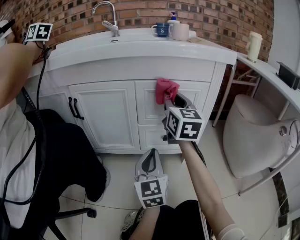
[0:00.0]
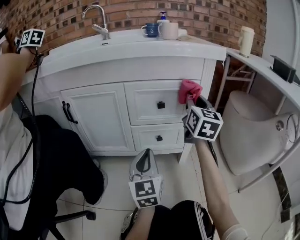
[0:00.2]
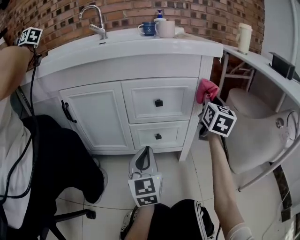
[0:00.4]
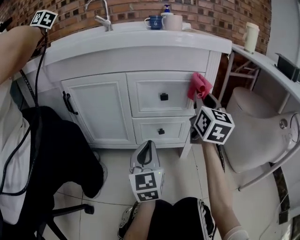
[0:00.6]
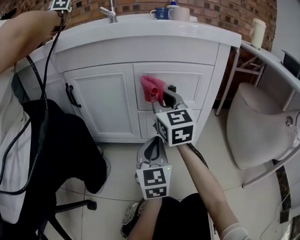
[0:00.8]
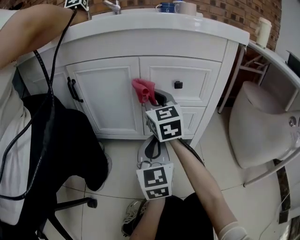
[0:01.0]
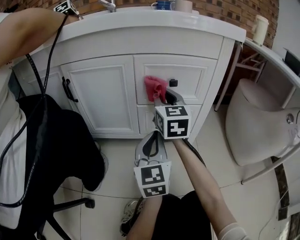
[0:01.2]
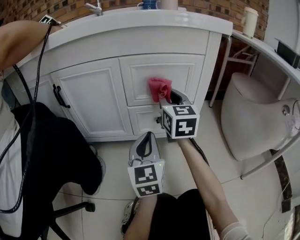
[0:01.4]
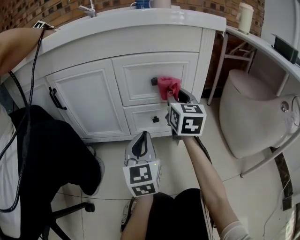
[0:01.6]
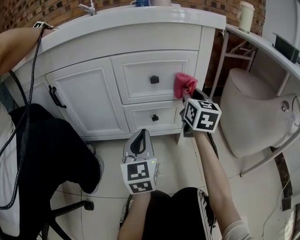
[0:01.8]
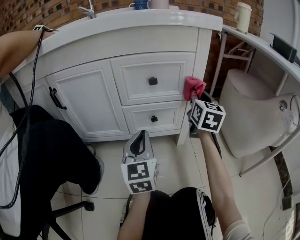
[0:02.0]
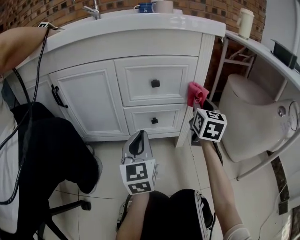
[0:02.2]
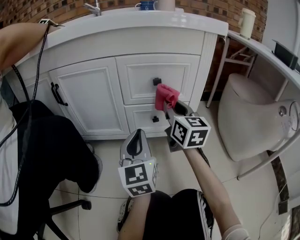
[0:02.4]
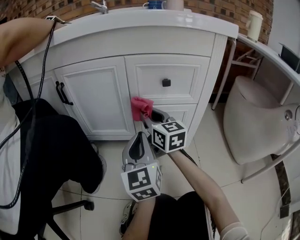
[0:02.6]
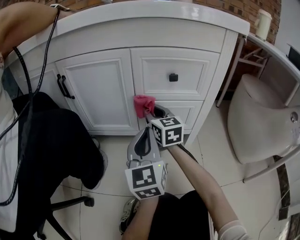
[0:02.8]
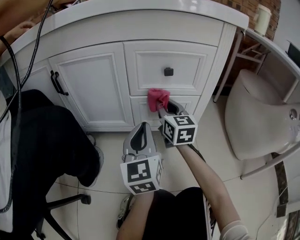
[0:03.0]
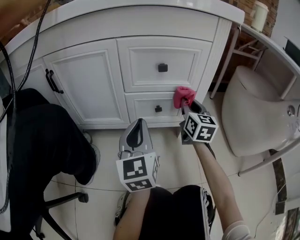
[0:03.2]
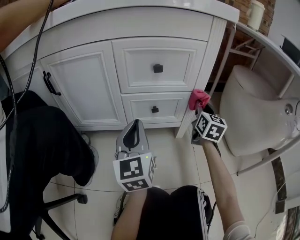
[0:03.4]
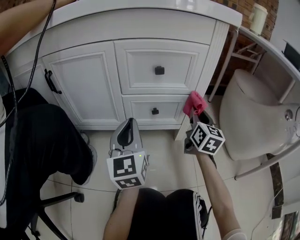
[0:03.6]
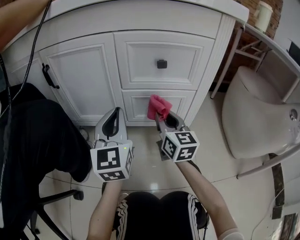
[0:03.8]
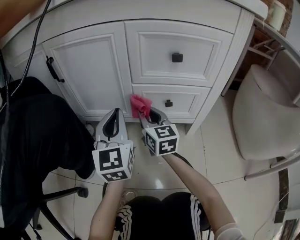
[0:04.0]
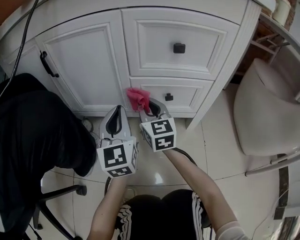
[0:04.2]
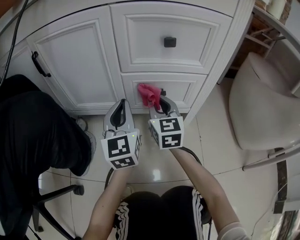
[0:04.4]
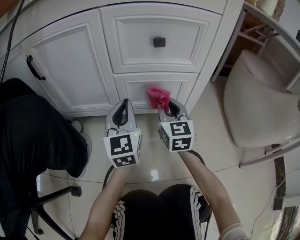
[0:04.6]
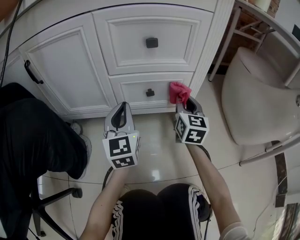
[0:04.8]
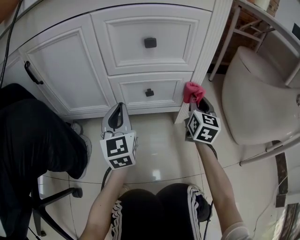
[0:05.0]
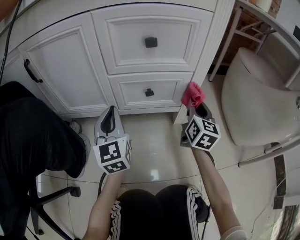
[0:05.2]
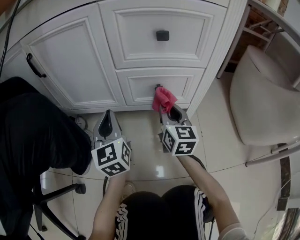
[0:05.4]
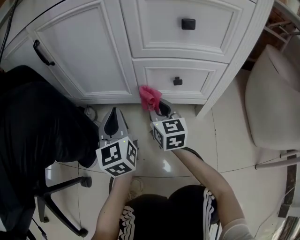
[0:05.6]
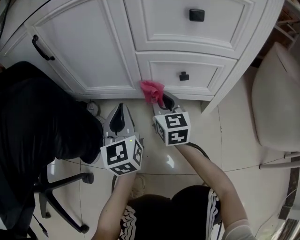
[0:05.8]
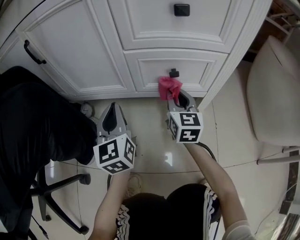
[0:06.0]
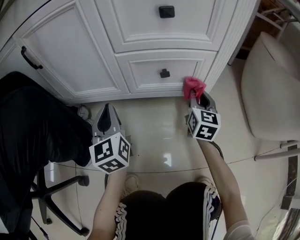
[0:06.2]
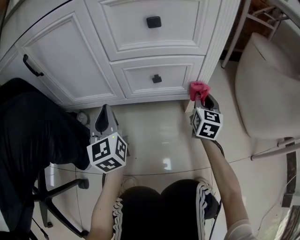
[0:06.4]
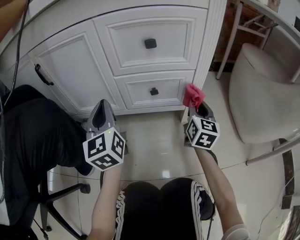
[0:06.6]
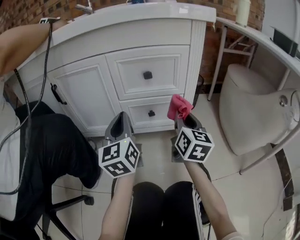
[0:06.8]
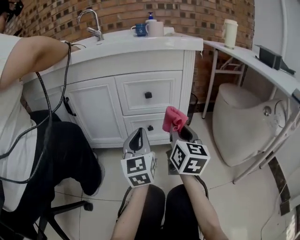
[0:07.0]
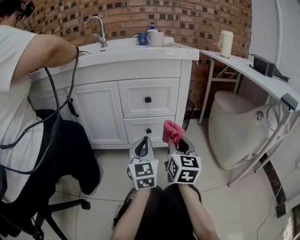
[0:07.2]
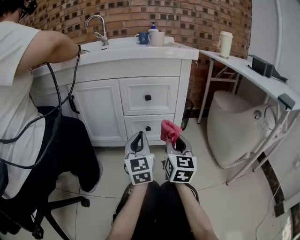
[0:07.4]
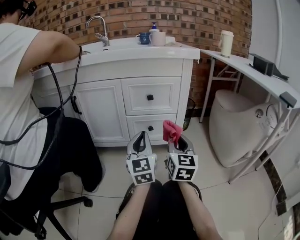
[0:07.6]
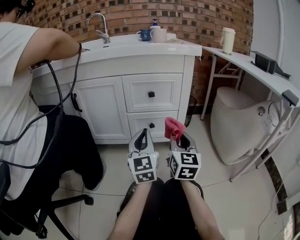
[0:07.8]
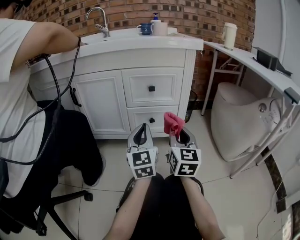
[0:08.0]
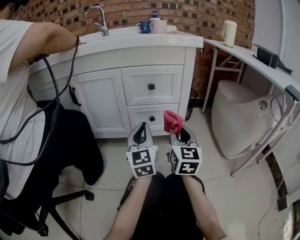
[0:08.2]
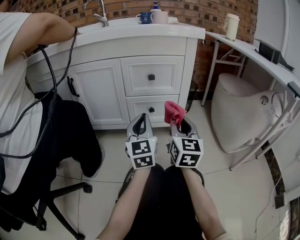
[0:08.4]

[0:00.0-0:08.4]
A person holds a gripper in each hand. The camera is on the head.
0:00.0 to 0:01.4: The right gripper moves left and right over about 30 cm, changing direction 2 times.
0:01.4 to 0:02.8: The right gripper is displaced downward and to the left by about 15 cm.
0:02.8 to 0:04.2: The right gripper travels downward by approximately 10 cm, and goes to the right and returns, about 30 cm each way, while the left gripper travels forward, to the left and downward by some 10 cm.
0:04.2 to 0:05.6: The two grippers go some 10 cm downward. The left gripper travels to the right and back again, about 5 cm each way. The right gripper goes to the right and returns, about 30 cm each way.
0:05.6 to 0:07.0: The two grippers go about 30 cm upward, to the right and backward. The right gripper turns by about 30 degrees.
0:07.0 to 0:08.4: The grippers make only small movements.

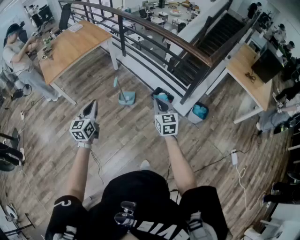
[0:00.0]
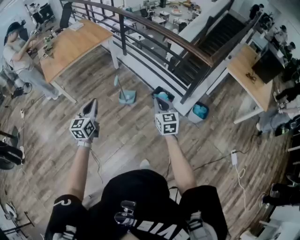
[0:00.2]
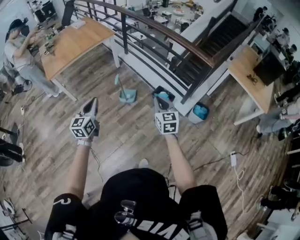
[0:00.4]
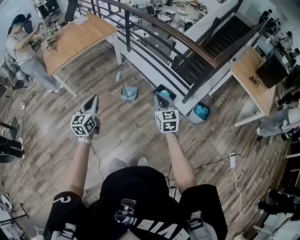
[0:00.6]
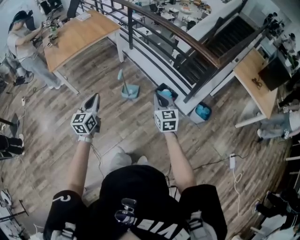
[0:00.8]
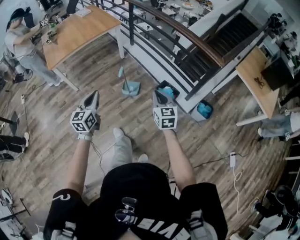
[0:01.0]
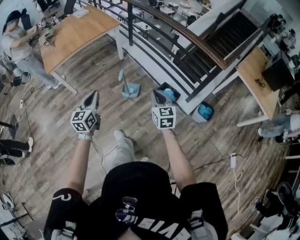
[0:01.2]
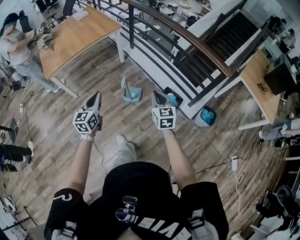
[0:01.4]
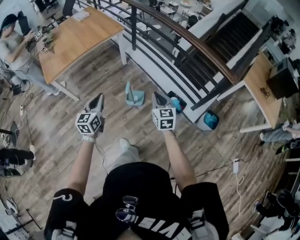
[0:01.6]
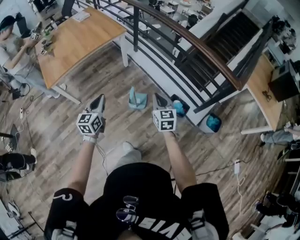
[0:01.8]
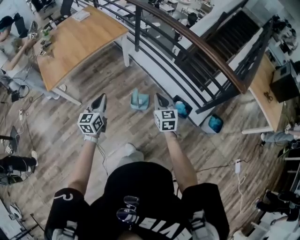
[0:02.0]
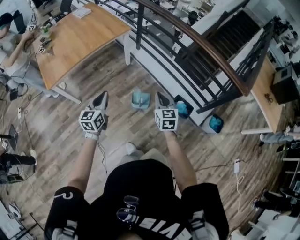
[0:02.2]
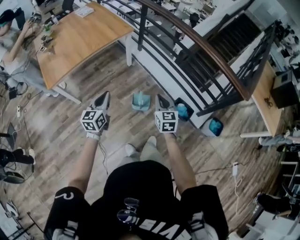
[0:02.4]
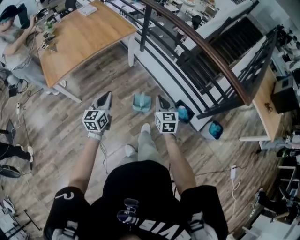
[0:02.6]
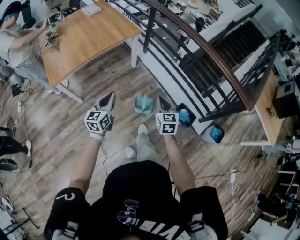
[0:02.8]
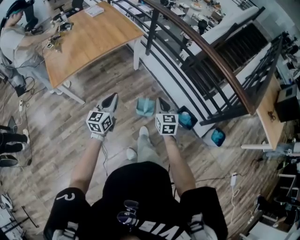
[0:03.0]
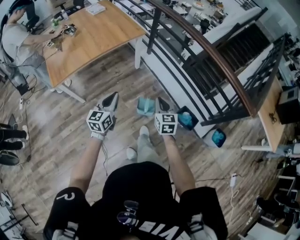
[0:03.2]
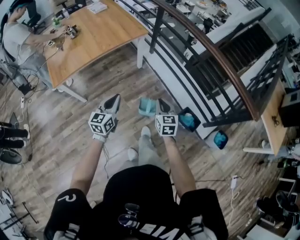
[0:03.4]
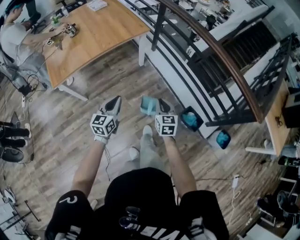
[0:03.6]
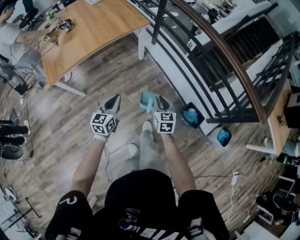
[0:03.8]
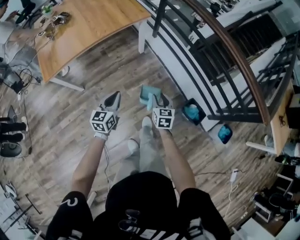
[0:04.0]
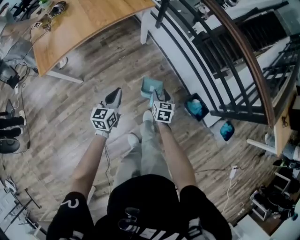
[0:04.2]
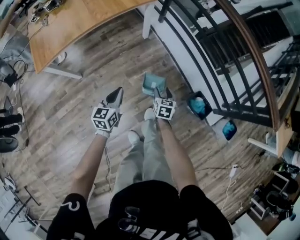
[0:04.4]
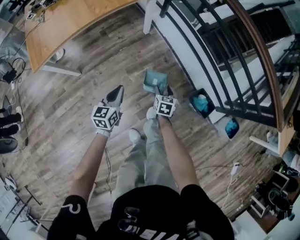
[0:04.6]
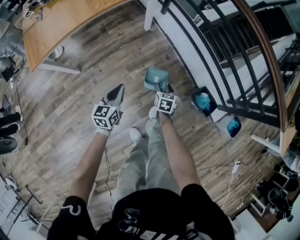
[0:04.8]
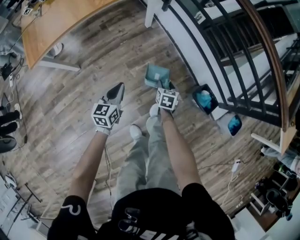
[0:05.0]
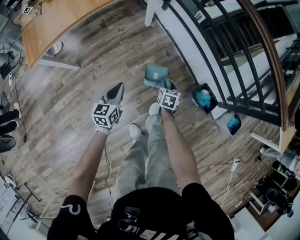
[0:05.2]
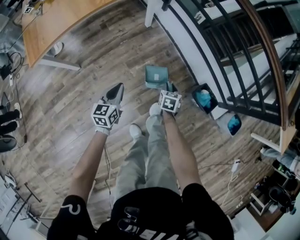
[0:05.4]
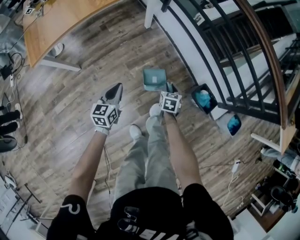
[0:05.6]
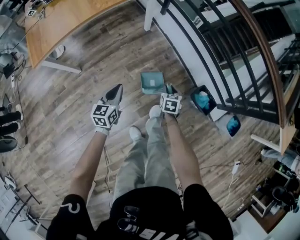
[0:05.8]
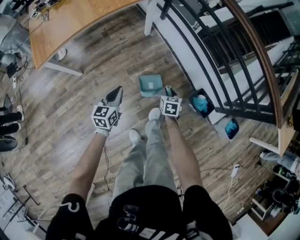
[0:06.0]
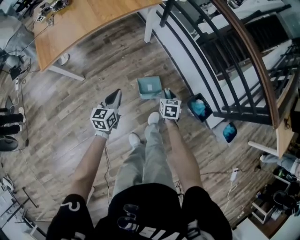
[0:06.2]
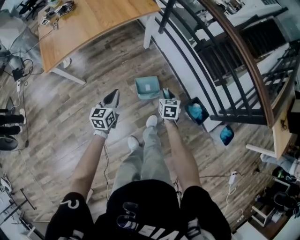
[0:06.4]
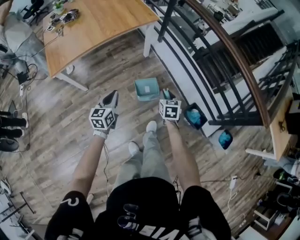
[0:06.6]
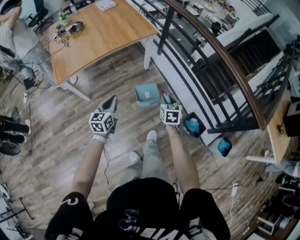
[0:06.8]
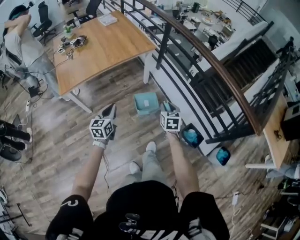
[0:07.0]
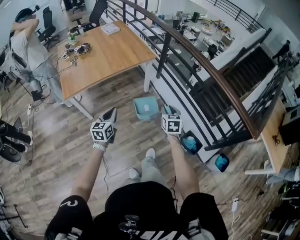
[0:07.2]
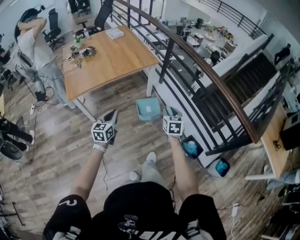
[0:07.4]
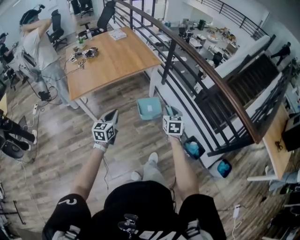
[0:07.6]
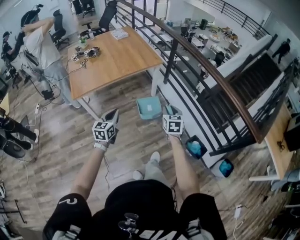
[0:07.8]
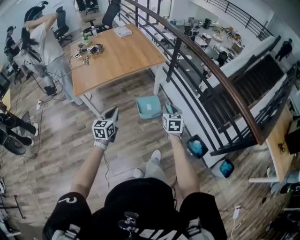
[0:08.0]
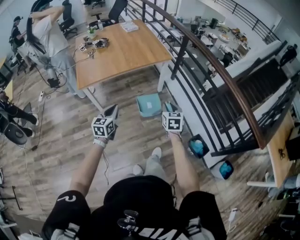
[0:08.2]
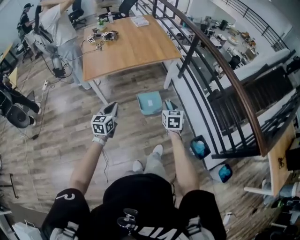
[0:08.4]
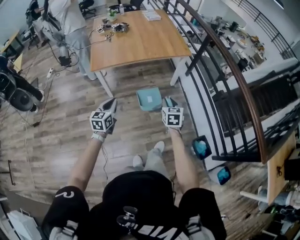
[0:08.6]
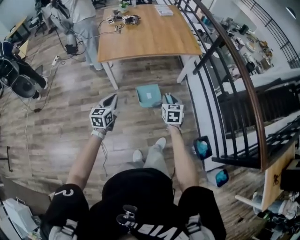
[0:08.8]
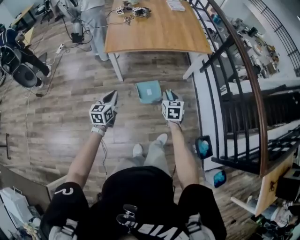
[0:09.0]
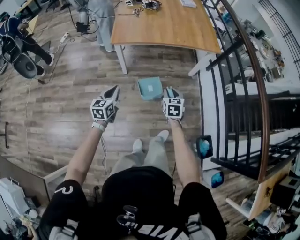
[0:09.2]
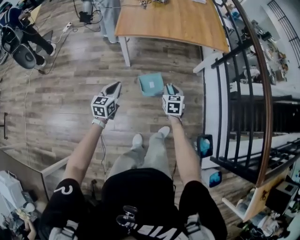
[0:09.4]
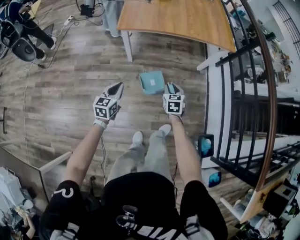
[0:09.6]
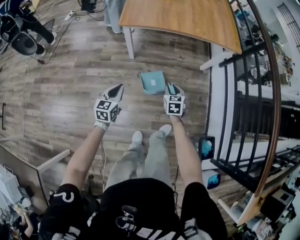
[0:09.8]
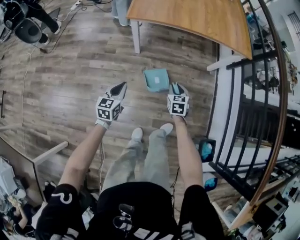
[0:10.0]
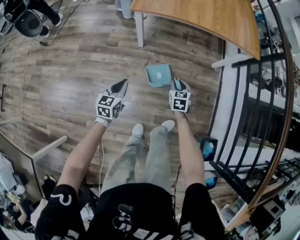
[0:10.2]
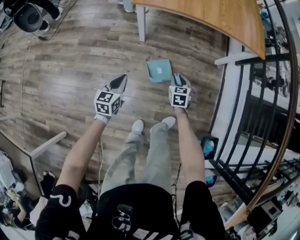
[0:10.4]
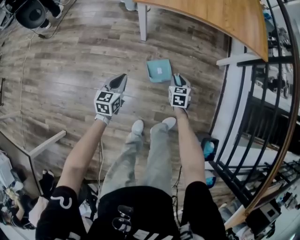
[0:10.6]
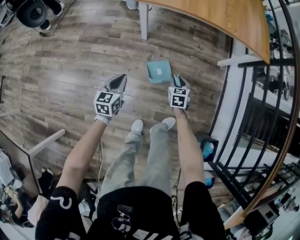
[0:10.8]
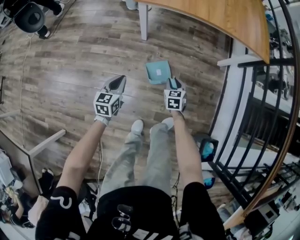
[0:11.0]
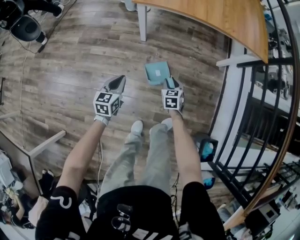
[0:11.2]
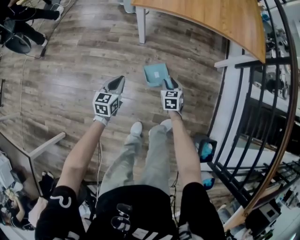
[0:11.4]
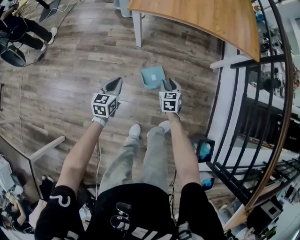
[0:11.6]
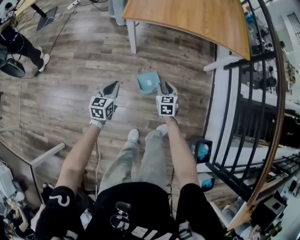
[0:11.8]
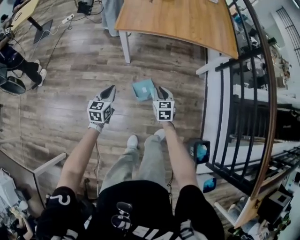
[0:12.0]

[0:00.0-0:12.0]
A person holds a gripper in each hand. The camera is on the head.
0:00.0 to 0:01.6: Both grippers move forward and to the left, about 25 cm.
0:01.6 to 0:03.0: Both grippers travel together forward and to the left, some 20 cm.
0:03.0 to 0:04.4: The two grippers go approximately 25 cm downward. The right gripper changes its angle by some 20 degrees, and opens its fingers.
0:04.4 to 0:06.0: The right gripper travels downward and back again, some 10 cm each way, and closes.
0:06.0 to 0:07.6: The grippers both shift upward by about 30 cm. The right gripper turns by about 20 degrees.
0:07.6 to 0:09.0: The right gripper moves to the left and downward, about 25 cm, and swivels approximately 20 degrees. Meanwhile the left gripper heads to the left, covering about 20 cm, and changes its angle by roughly 20 degrees.
0:09.0 to 0:10.4: The two grippers go approximately 25 cm downward.
0:10.4 to 0:12.0: The two grippers go approximately 10 cm upward.

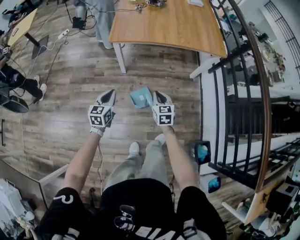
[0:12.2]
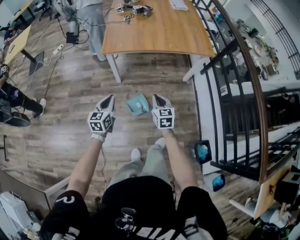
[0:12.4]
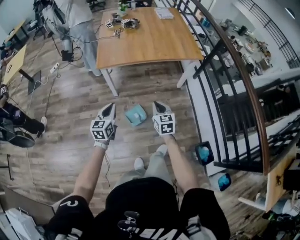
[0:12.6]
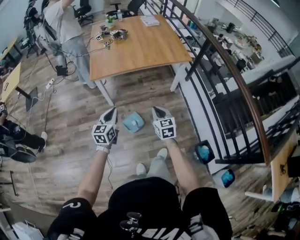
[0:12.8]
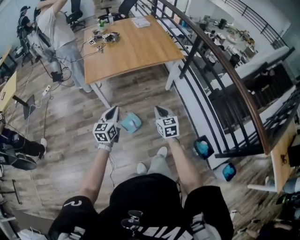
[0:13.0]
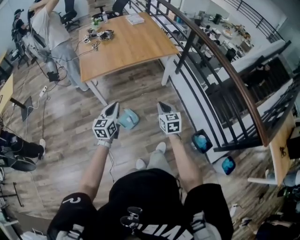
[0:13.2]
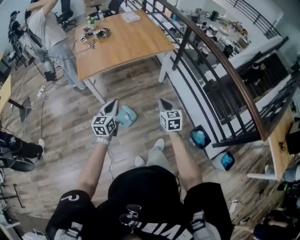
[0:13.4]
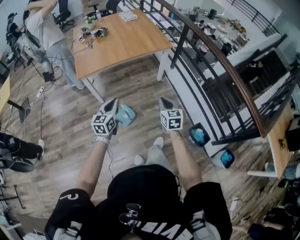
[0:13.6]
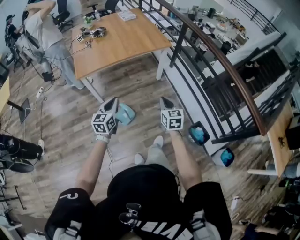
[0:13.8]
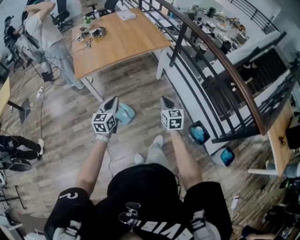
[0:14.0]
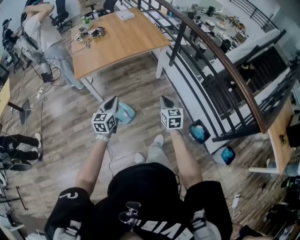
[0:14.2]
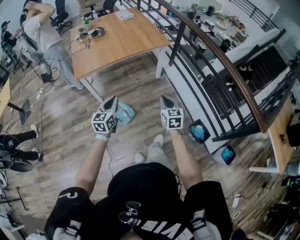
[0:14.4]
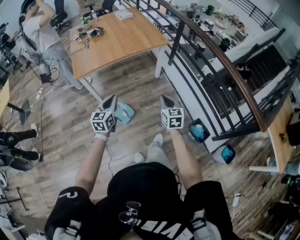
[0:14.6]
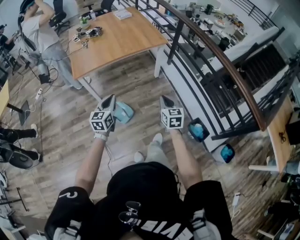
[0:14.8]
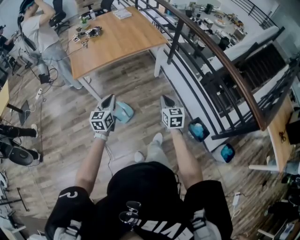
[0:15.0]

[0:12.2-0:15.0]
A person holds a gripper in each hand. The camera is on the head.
0:12.2 to 0:13.6: The right gripper goes about 30 cm to the right, upward and backward, and changes its angle by about 20 degrees, while the left gripper goes roughly 25 cm to the right and upward, and turns by about 20 degrees.
0:13.6 to 0:15.0: The grippers make only small movements.
